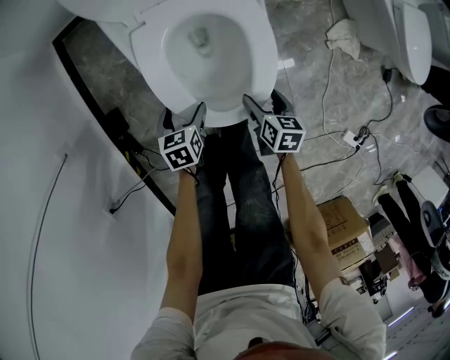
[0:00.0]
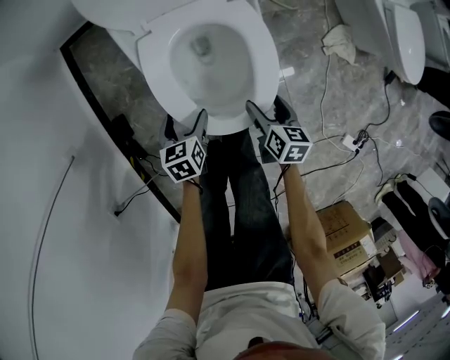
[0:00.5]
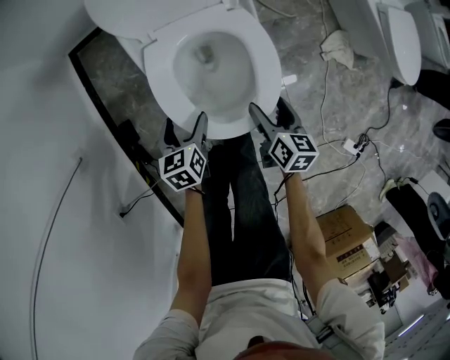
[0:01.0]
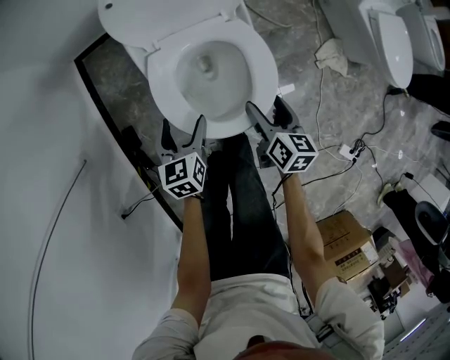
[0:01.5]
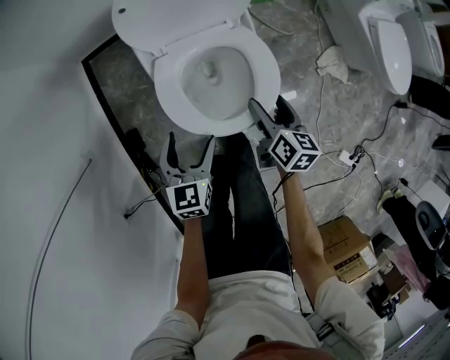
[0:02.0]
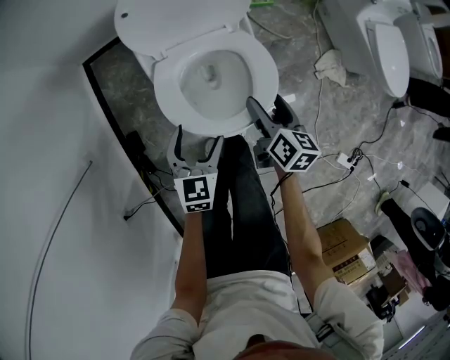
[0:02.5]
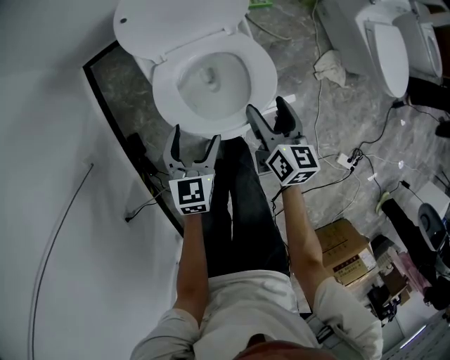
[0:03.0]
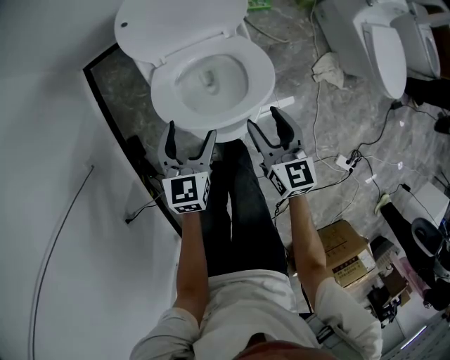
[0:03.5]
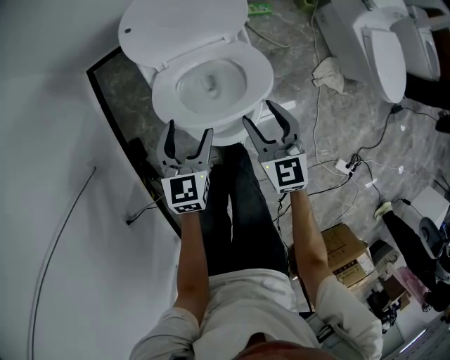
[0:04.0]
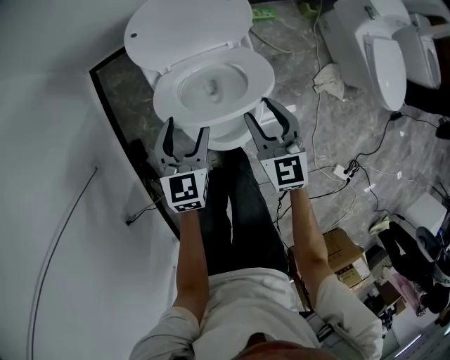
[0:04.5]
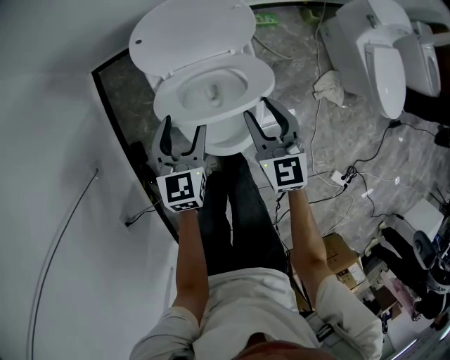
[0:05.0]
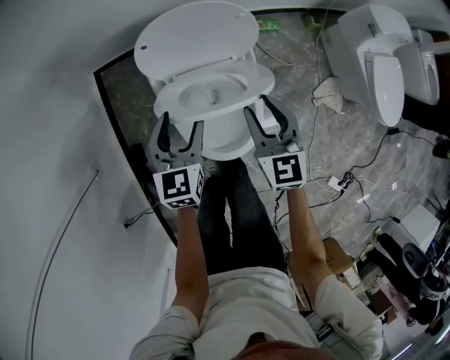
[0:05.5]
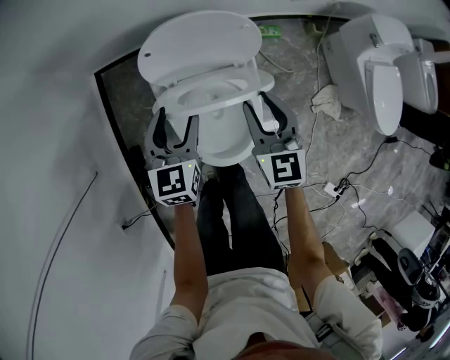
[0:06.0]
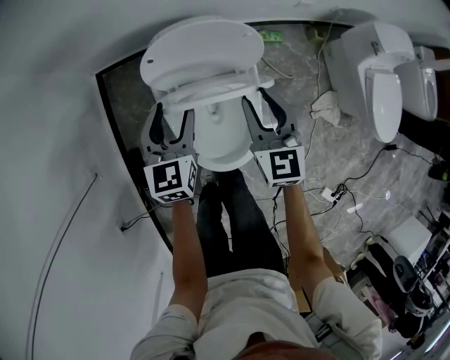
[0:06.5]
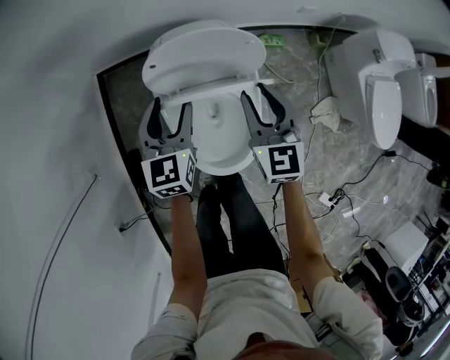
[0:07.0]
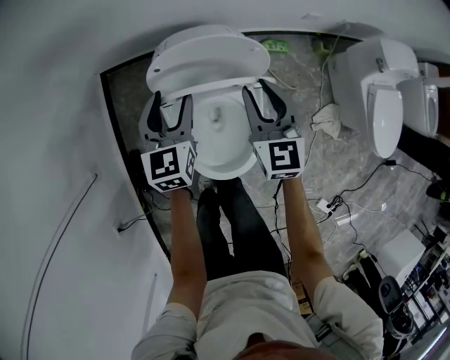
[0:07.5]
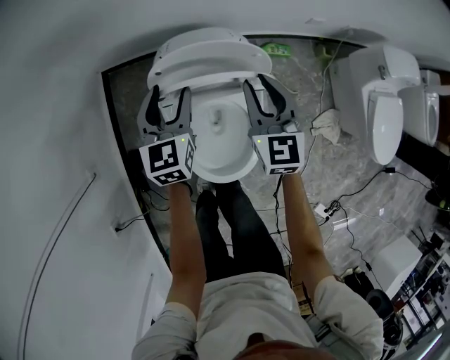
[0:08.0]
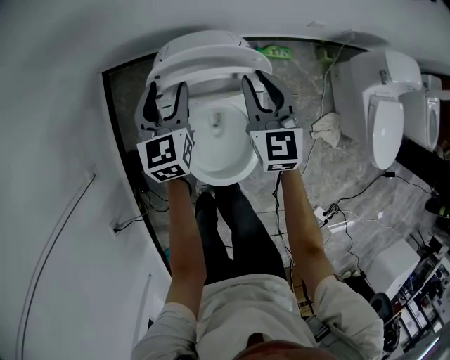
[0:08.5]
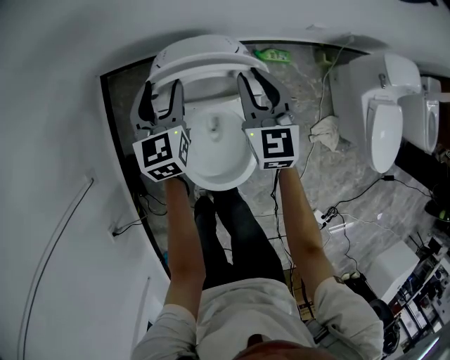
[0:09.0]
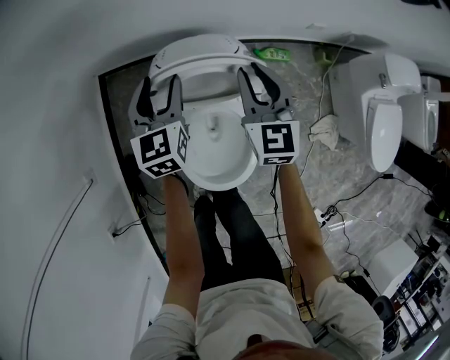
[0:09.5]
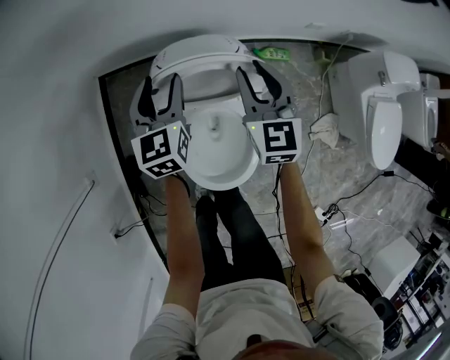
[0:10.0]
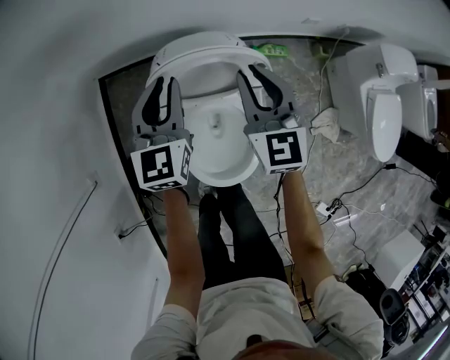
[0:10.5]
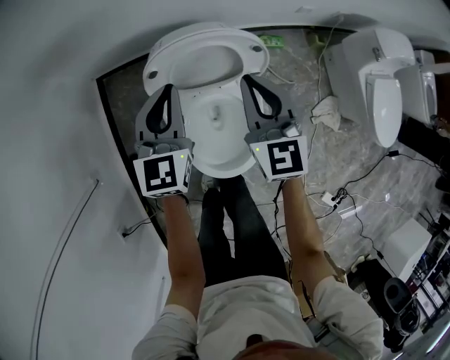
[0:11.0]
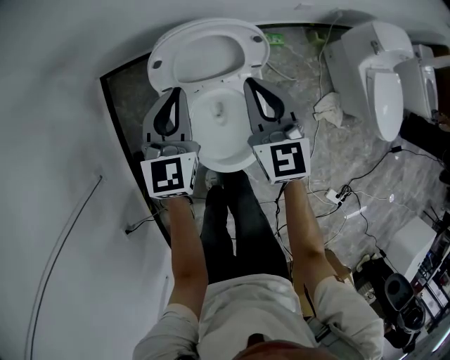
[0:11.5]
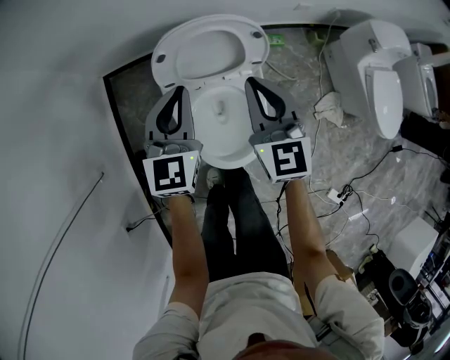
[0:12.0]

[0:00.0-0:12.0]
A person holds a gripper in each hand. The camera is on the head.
0:00.0 to 0:02.0: The two grippers go some 25 cm upward. The left gripper changes its angle by approximately 30 degrees. Meanwhile the right gripper turns by approximately 20 degrees.
0:02.0 to 0:04.0: The right gripper shifts about 10 cm upward, and twists approximately 40 degrees counterclockwise, seen from behind; the left gripper travels forward and upward by about 10 cm.
0:04.0 to 0:06.0: The two grippers go approximately 15 cm forward and upward.
0:06.0 to 0:08.0: Both grippers move forward, about 15 cm.
0:08.0 to 0:10.0: Both grippers travel together forward, some 5 cm.
0:10.0 to 0:12.0: Both grippers move backward and upward, approximately 15 cm. The left gripper closes.

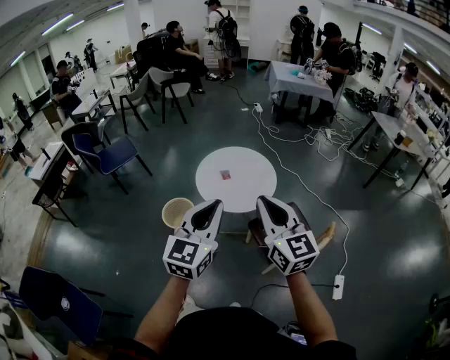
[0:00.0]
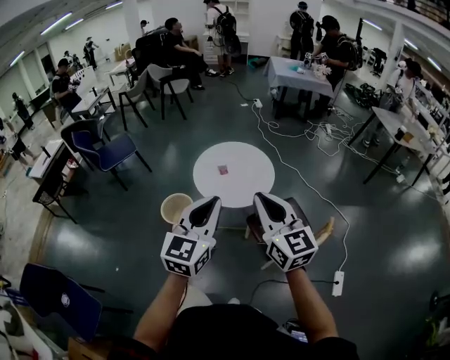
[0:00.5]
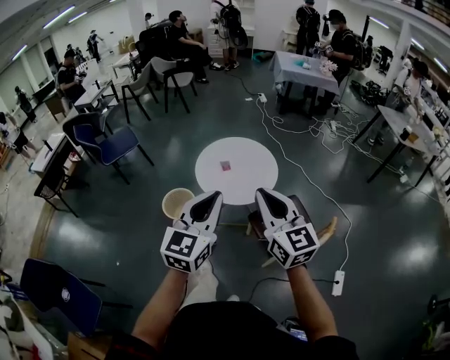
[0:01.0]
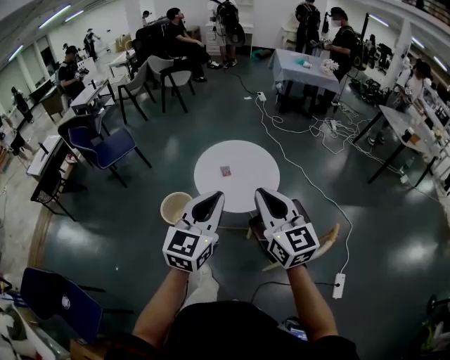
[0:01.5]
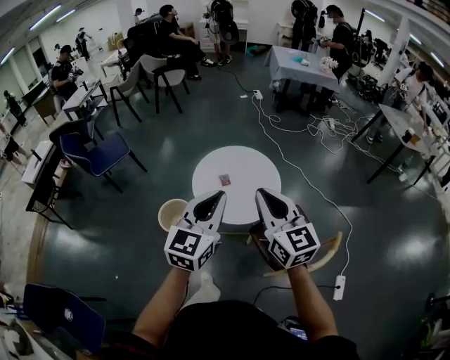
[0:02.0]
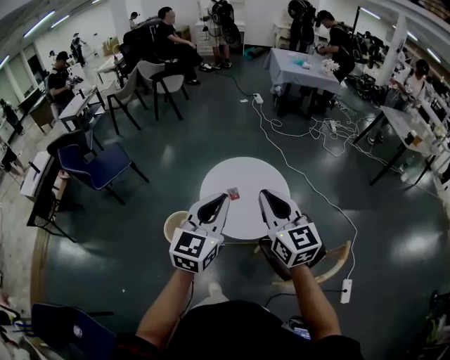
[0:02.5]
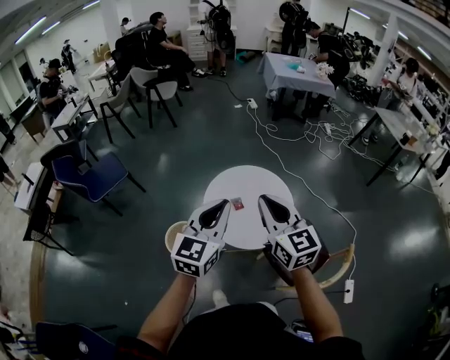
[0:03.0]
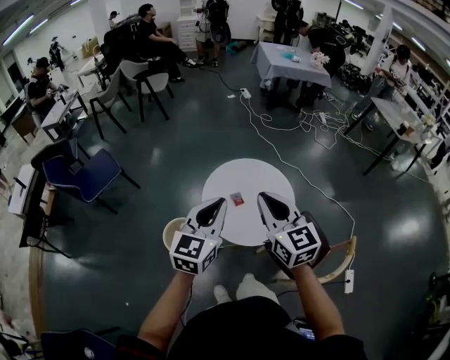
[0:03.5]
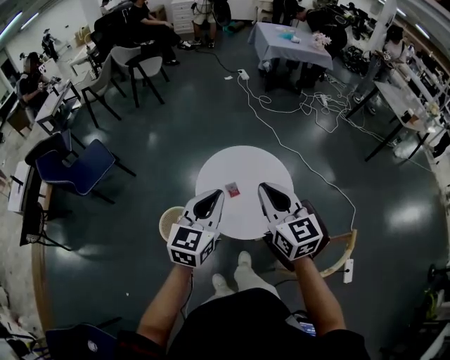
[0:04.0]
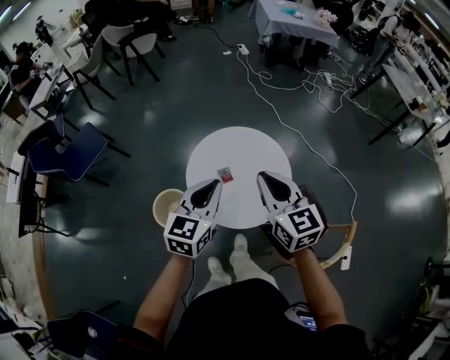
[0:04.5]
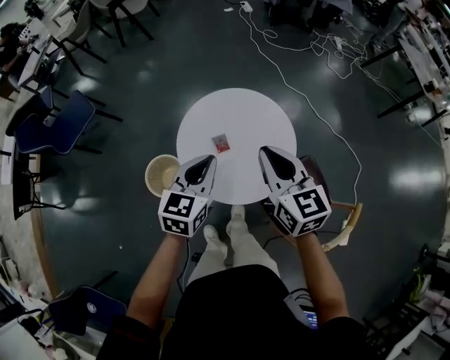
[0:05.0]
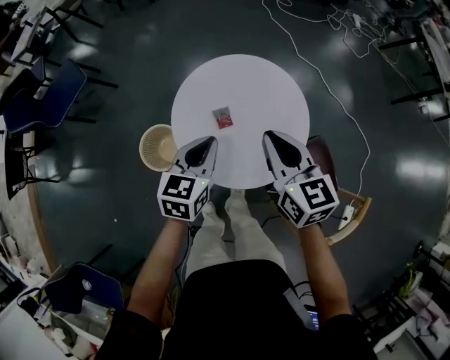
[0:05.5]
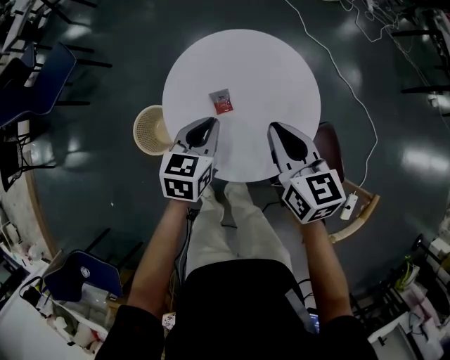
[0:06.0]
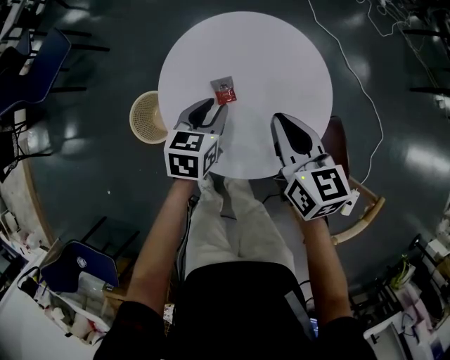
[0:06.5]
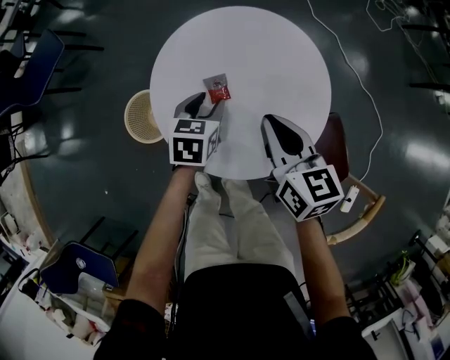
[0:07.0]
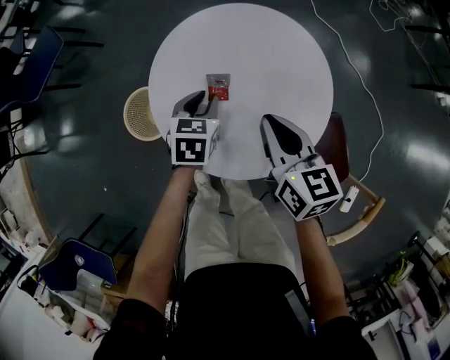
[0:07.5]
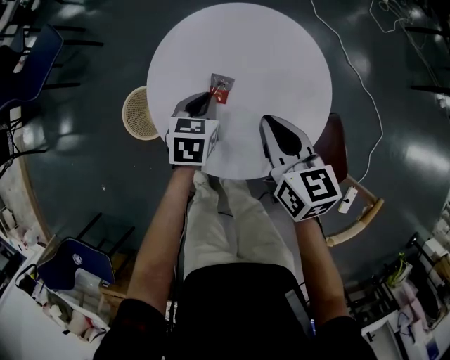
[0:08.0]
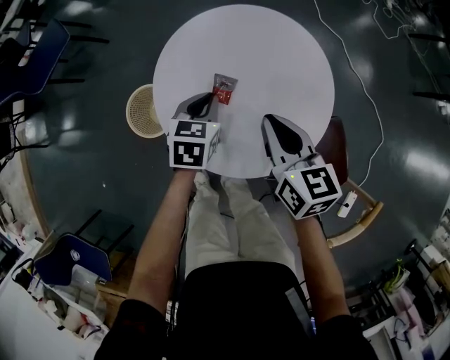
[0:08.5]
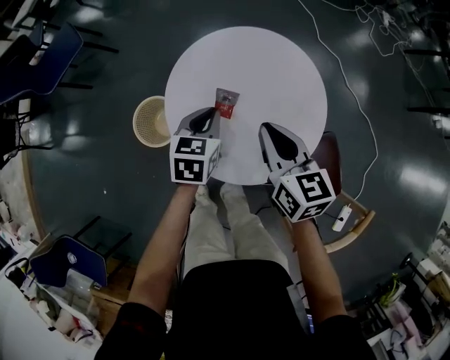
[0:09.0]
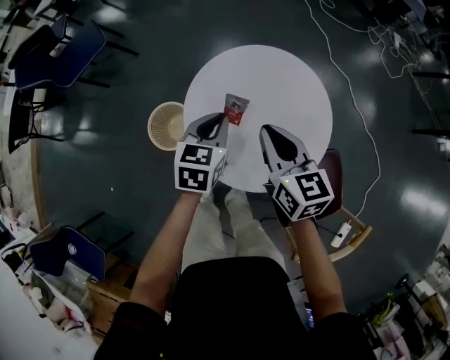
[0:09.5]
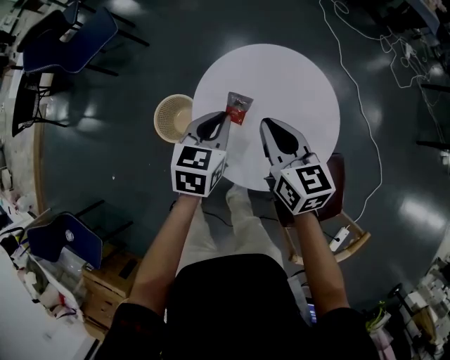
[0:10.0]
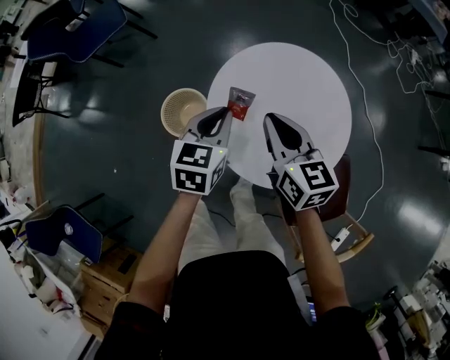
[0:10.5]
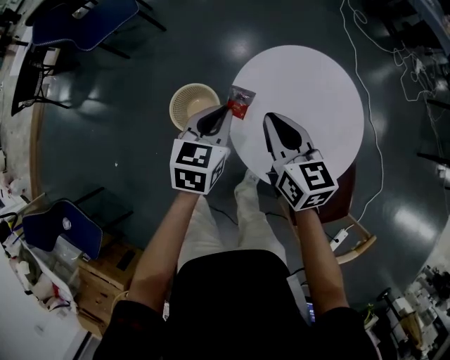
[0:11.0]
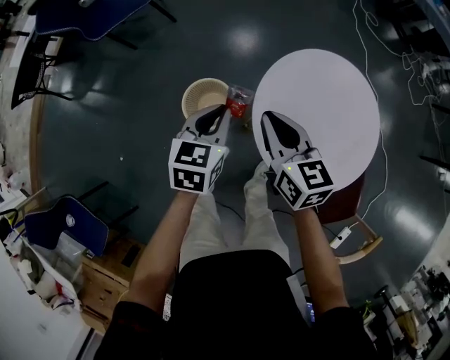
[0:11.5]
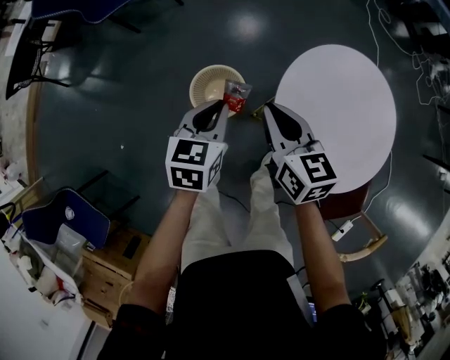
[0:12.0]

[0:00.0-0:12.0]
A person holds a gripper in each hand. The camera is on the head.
0:00.0 to 0:02.0: The grippers both shift forward by approximately 20 cm.
0:02.0 to 0:04.0: The grippers both shift forward and to the left by some 25 cm.
0:04.0 to 0:06.0: The two grippers go roughly 35 cm downward and forward. The left gripper changes its angle by about 30 degrees, while the right gripper turns by roughly 20 degrees.
0:06.0 to 0:08.0: Both grippers move downward, about 10 cm. The left gripper opens and closes again.
0:08.0 to 0:10.0: The right gripper goes roughly 10 cm upward and to the left. The left gripper moves upward, approximately 15 cm.
0:10.0 to 0:12.0: The grippers both shift to the left by some 30 cm.

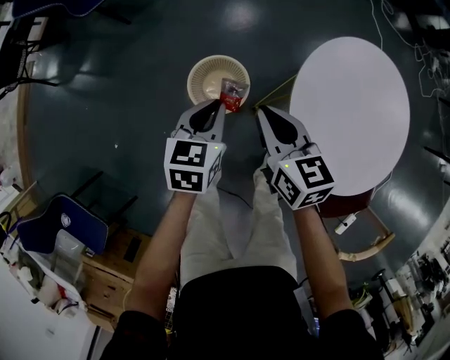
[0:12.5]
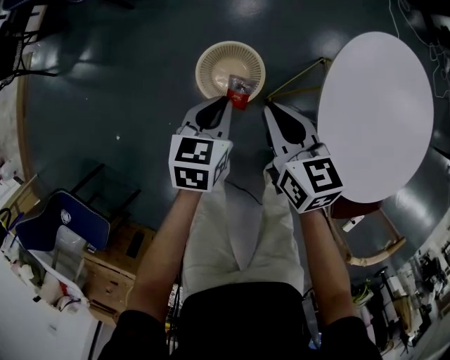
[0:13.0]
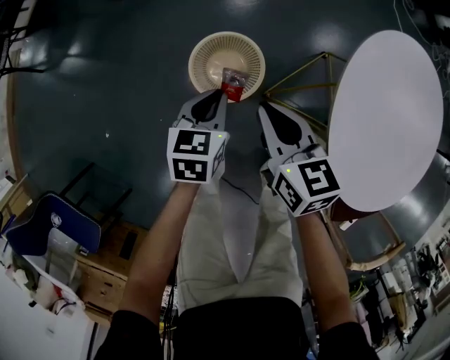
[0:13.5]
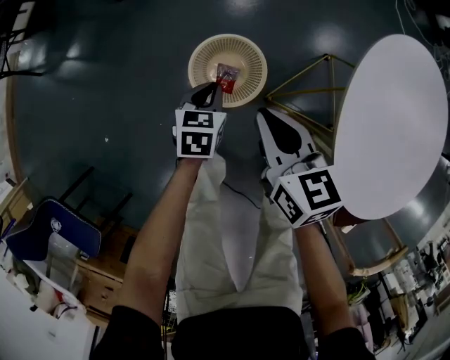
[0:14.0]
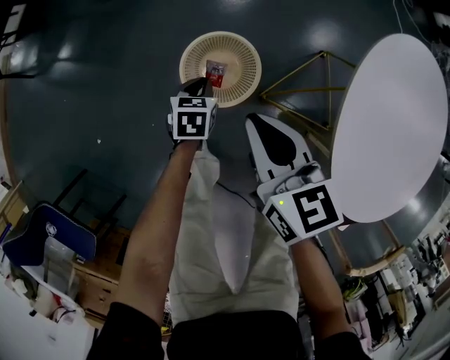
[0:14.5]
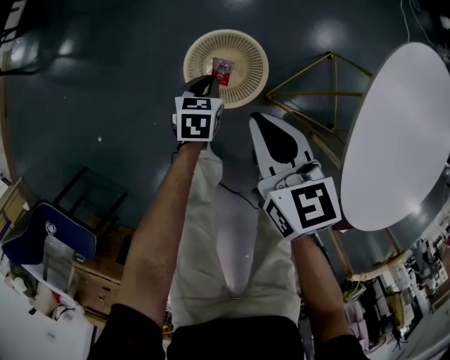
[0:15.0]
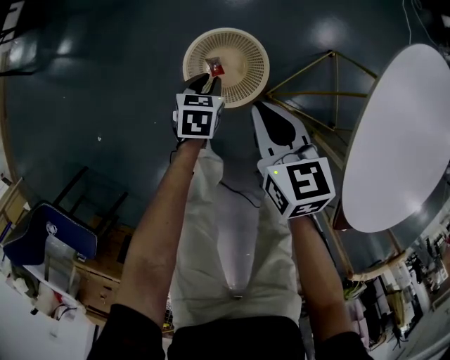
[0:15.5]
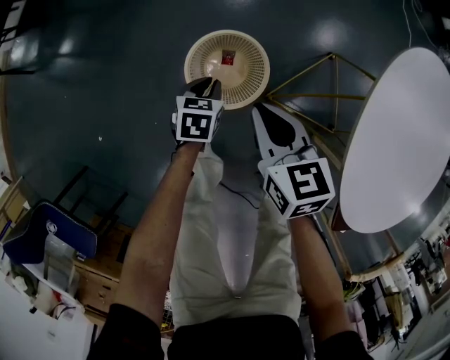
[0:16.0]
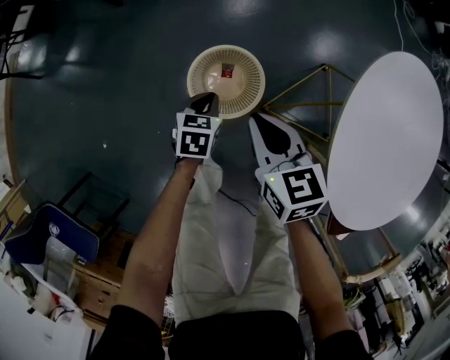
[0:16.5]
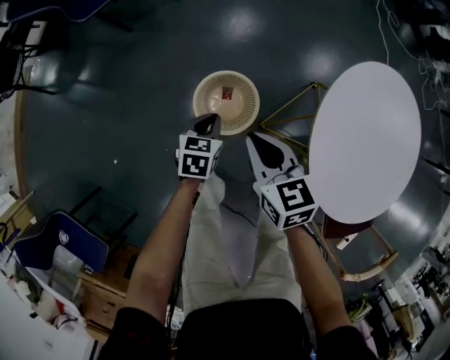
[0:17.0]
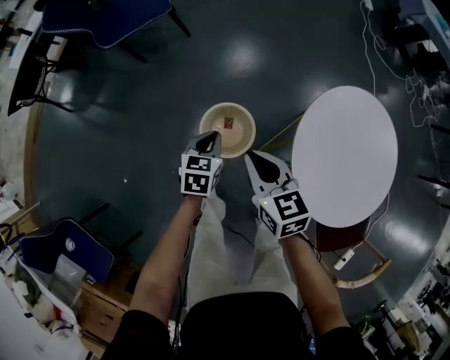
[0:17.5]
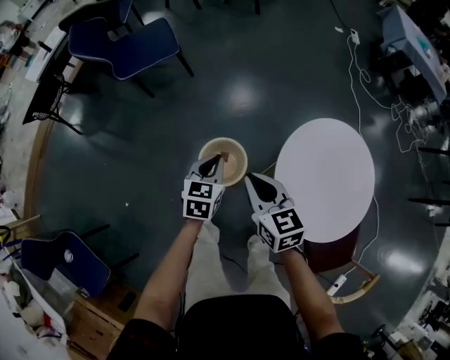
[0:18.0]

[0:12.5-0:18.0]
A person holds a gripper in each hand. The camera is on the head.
0:12.5 to 0:14.5: The left gripper heads downward, covering about 35 cm, while the right gripper goes about 15 cm downward and to the left.
0:14.5 to 0:16.0: The right gripper goes some 10 cm downward.
0:16.0 to 0:18.0: Both grippers travel together upward, some 40 cm. The left gripper turns by some 20 degrees.
